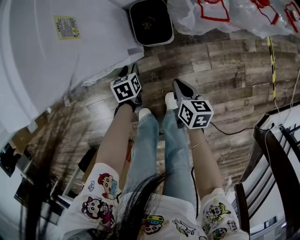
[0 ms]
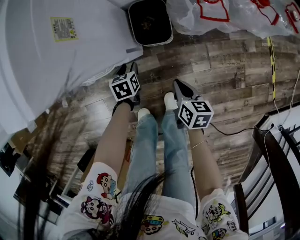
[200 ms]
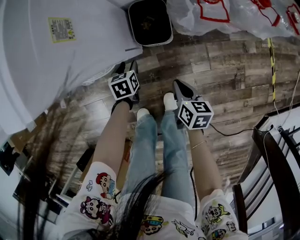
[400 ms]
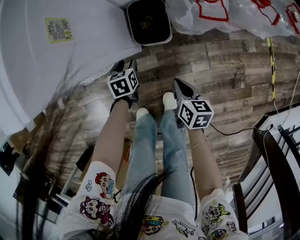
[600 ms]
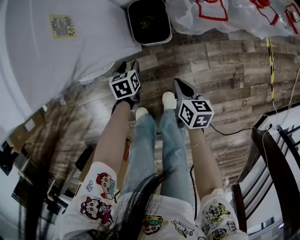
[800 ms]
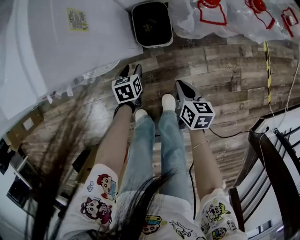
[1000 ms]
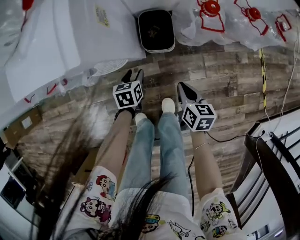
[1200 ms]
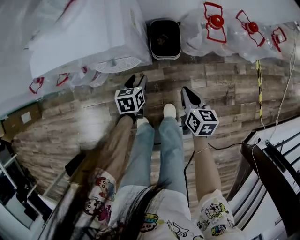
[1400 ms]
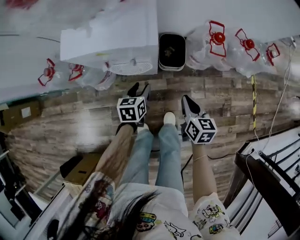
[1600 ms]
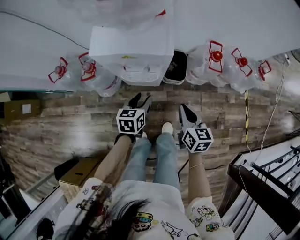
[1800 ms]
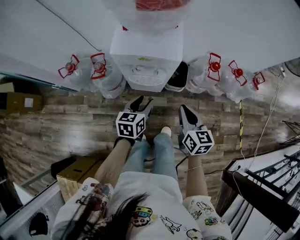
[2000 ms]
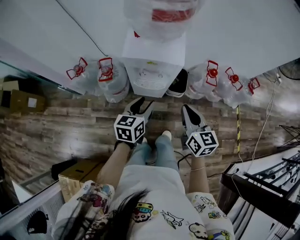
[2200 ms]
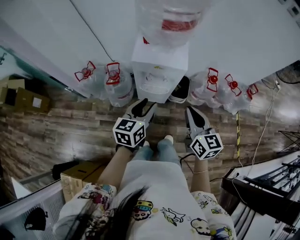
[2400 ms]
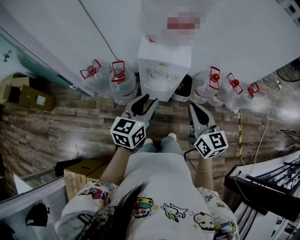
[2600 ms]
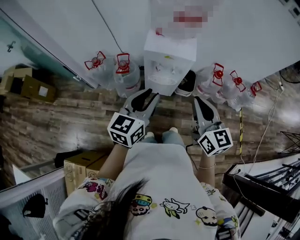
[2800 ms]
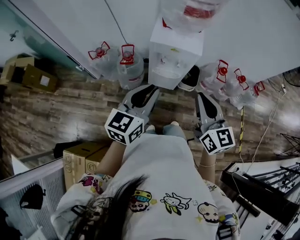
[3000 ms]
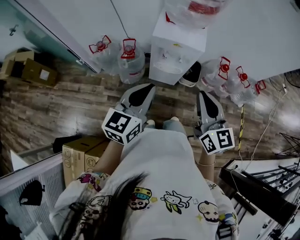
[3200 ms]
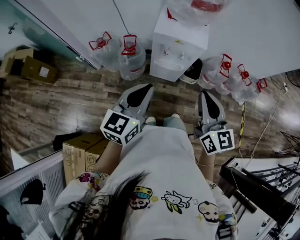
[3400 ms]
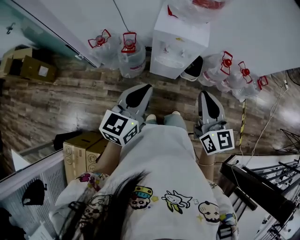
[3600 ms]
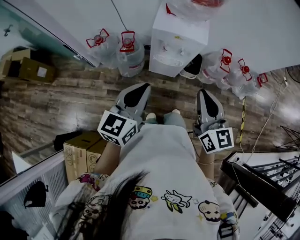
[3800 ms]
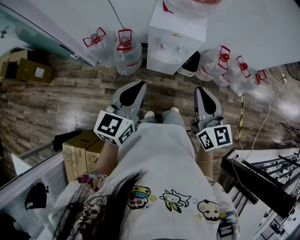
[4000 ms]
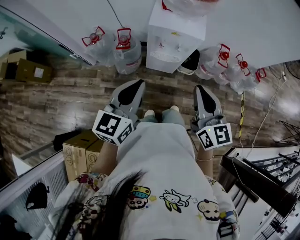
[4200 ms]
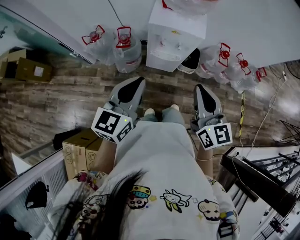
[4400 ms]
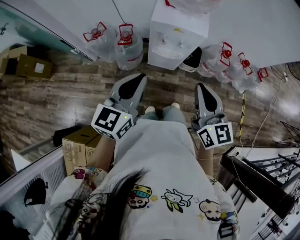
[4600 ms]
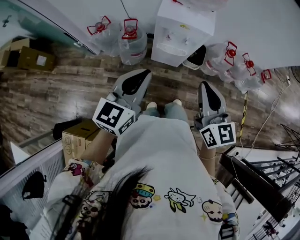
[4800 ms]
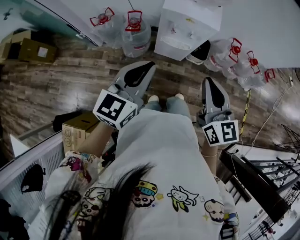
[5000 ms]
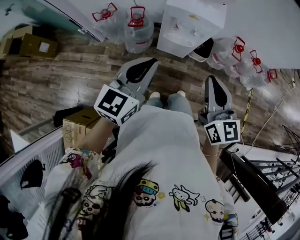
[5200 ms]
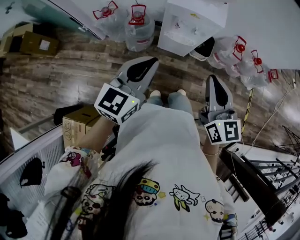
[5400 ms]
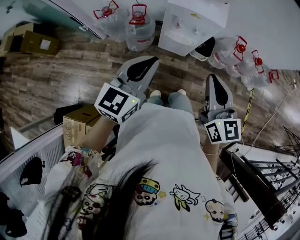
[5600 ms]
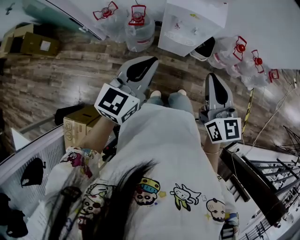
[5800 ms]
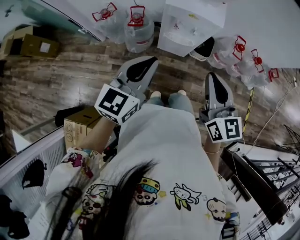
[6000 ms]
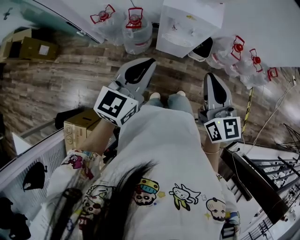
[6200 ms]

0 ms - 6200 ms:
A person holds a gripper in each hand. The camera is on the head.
0 ms - 1600 ms: Both grippers move upward, approximately 20 cm. The left gripper turns by about 20 degrees.
1600 ms - 3200 ms: The left gripper is displaced upward and backward by roughly 50 cm, angles its fingers upward, by roughly 40 degrees, and closes up; the right gripper travels upward and to the left by approximately 40 cm, and tips its fingers upward by some 30 degrees.
3200 ms - 4600 ms: The grippers make only small movements.
4600 ms - 6200 ms: Neither gripper changes place.

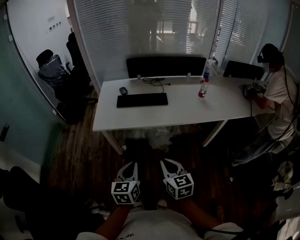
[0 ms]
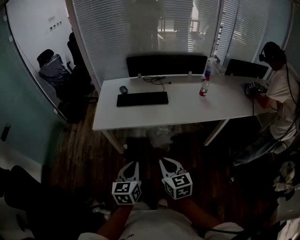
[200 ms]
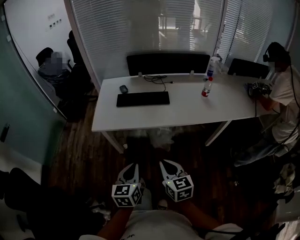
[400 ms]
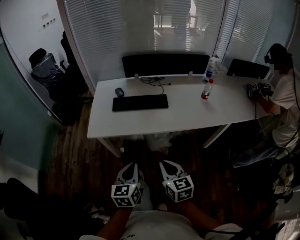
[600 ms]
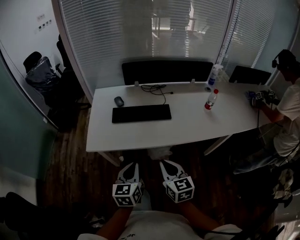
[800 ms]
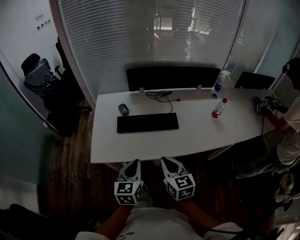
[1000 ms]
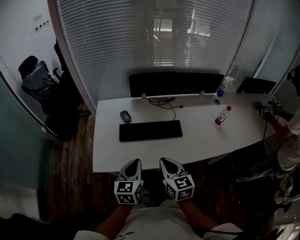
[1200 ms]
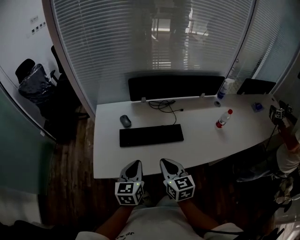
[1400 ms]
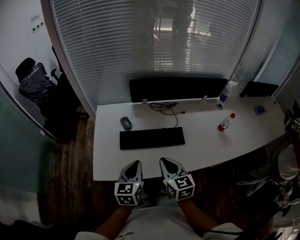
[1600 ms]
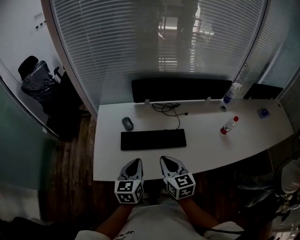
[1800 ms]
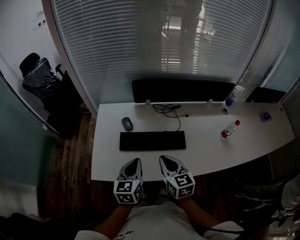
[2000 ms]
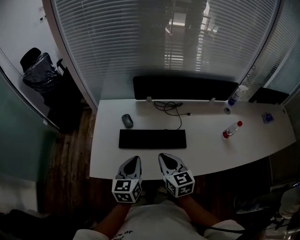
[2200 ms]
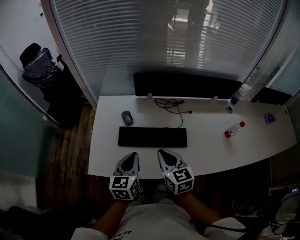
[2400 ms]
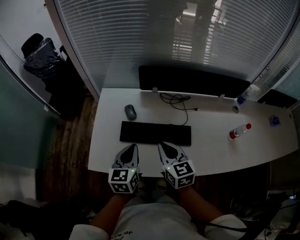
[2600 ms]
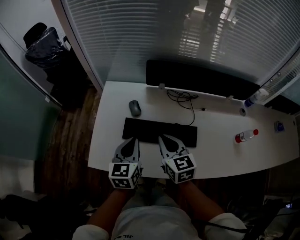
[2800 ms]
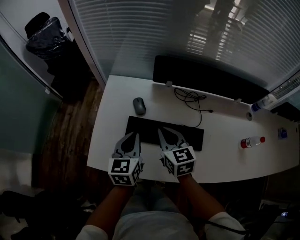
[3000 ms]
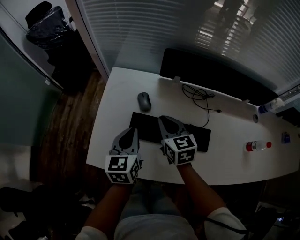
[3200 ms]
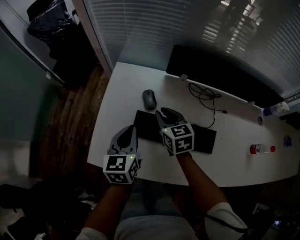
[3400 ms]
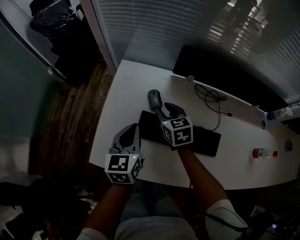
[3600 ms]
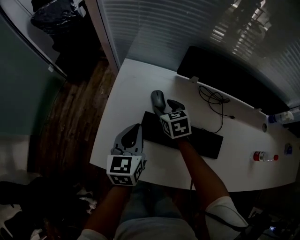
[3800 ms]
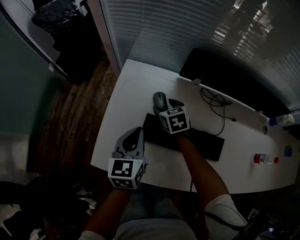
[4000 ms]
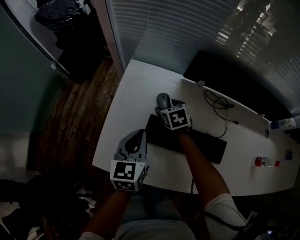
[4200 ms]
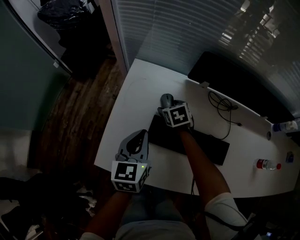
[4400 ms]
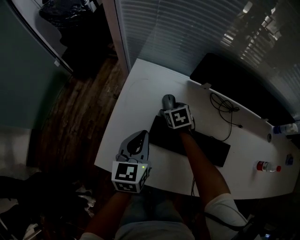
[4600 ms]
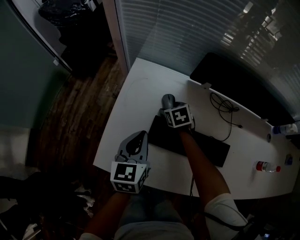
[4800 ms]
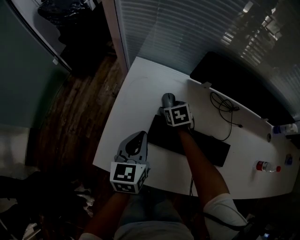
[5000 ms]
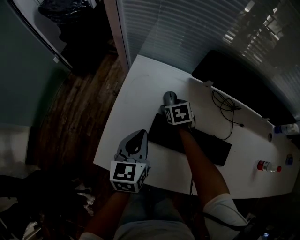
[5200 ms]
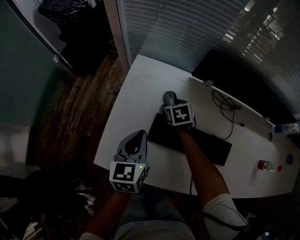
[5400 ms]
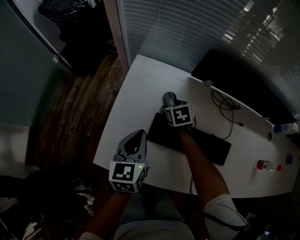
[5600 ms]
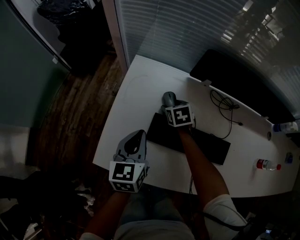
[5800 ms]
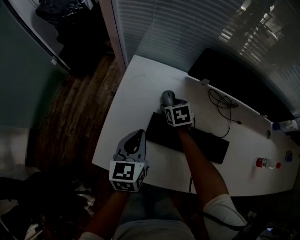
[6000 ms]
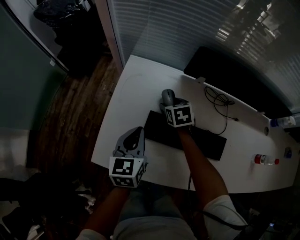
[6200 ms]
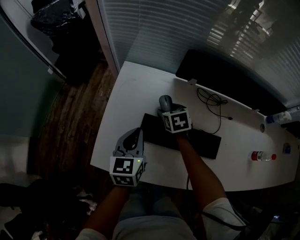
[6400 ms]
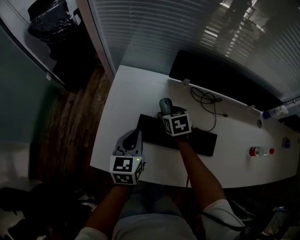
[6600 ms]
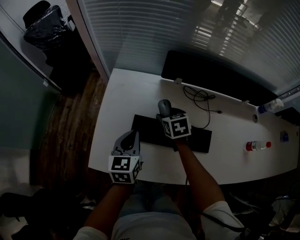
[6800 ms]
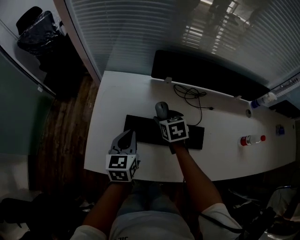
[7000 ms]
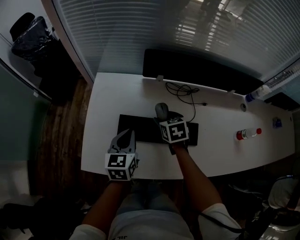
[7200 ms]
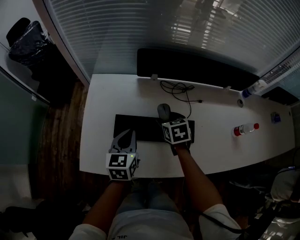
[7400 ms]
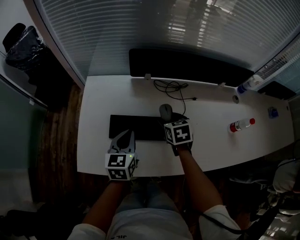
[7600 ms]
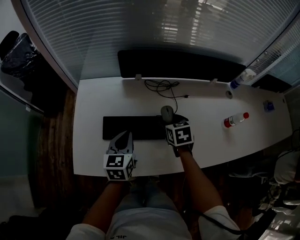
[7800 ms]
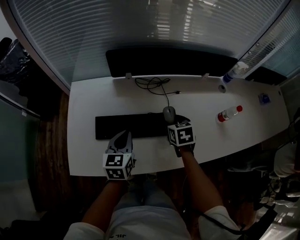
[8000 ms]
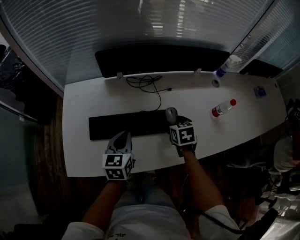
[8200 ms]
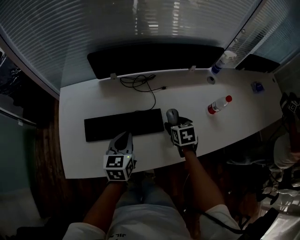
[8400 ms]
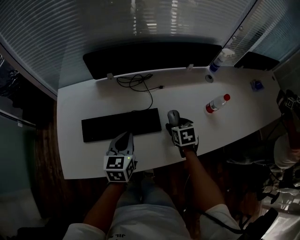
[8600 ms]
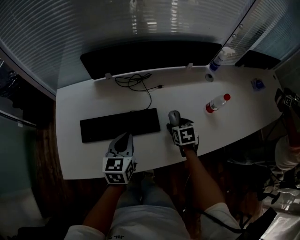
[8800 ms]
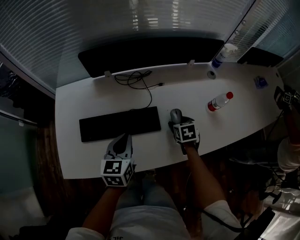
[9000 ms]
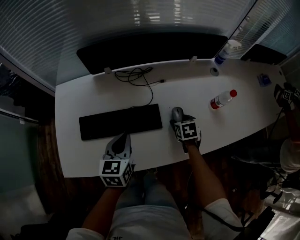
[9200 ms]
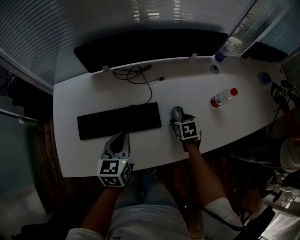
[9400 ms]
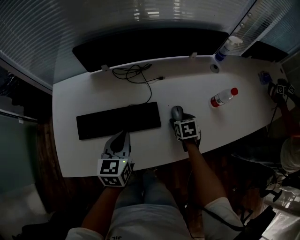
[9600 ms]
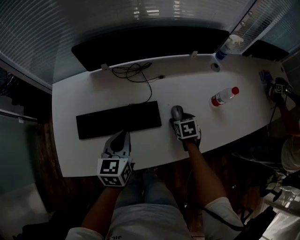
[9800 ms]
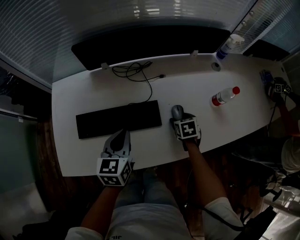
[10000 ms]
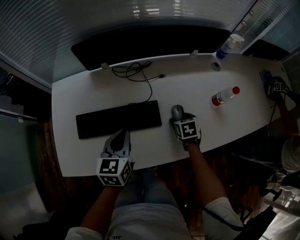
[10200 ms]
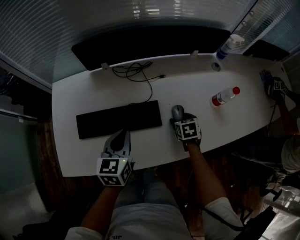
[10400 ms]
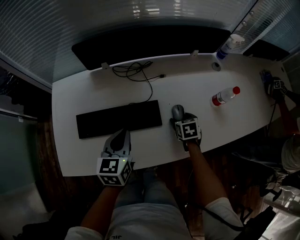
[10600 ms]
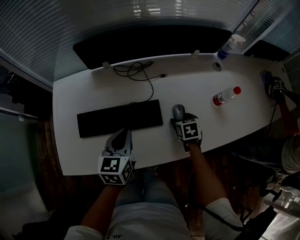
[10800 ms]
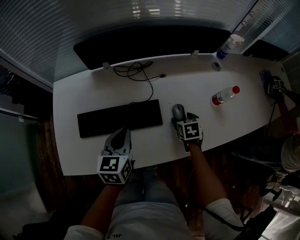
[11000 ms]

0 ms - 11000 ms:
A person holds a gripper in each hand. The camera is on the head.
0 ms - 1600 ms: Both grippers are carried forward, about 40 cm.
1600 ms - 3200 ms: The two grippers go approximately 20 cm forward.
3200 ms - 4800 ms: The left gripper travels to the left by about 5 cm. The right gripper is displaced downward and forward by approximately 20 cm, angles its fingers downward, by some 30 degrees, and opens its fingers.
4800 ms - 6200 ms: The grippers move only a little.
6200 ms - 7800 ms: The left gripper is displaced to the right by approximately 15 cm, while the right gripper heads to the right and backward, covering some 30 cm.
7800 ms - 9400 ms: The right gripper shifts roughly 25 cm to the right and downward, while the left gripper is displaced to the right by about 15 cm.
9400 ms - 11000 ms: The grippers move only a little.

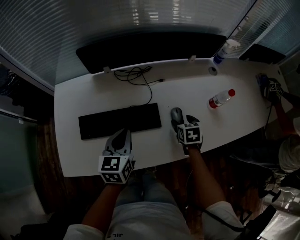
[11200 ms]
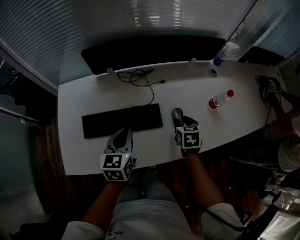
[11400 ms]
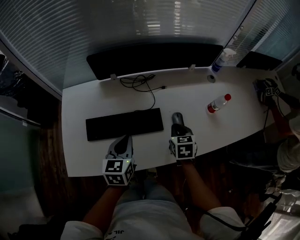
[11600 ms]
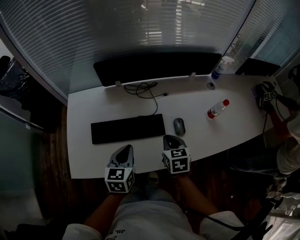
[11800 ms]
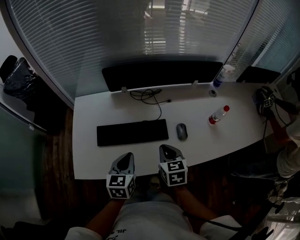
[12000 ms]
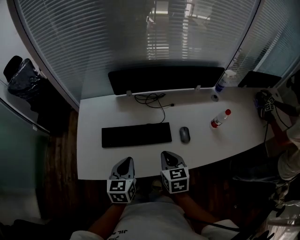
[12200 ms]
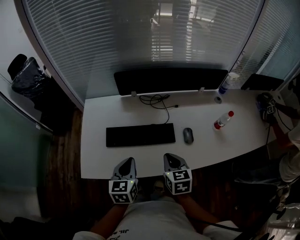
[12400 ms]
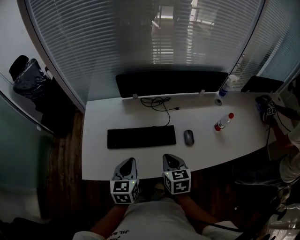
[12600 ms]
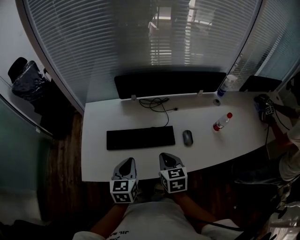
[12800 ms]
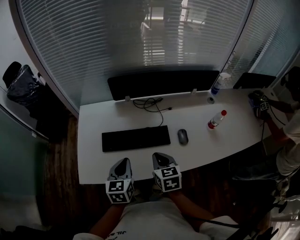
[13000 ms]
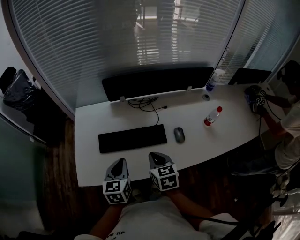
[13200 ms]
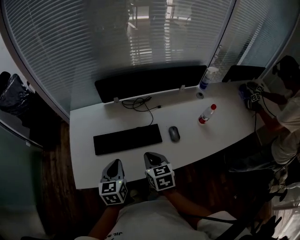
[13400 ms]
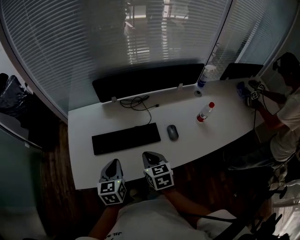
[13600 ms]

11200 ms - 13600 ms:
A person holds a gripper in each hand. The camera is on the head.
11200 ms - 12400 ms: The right gripper heads upward, to the left and backward, covering some 30 cm, swivels roughly 20 degrees, and closes its fingers. Meanwhile the left gripper heads backward, to the left and upward, covering some 15 cm.
12400 ms - 13600 ms: The grippers move only a little.

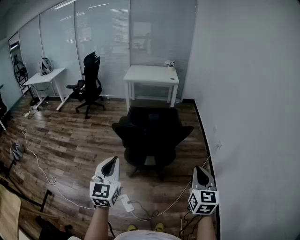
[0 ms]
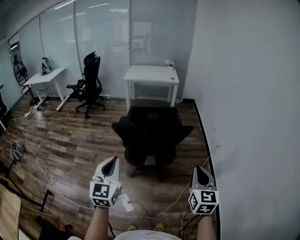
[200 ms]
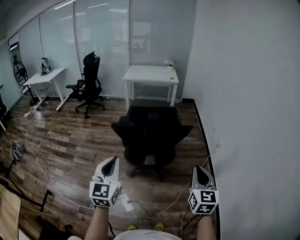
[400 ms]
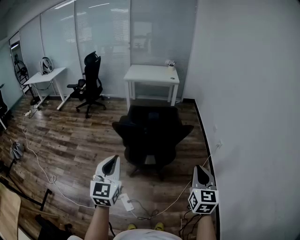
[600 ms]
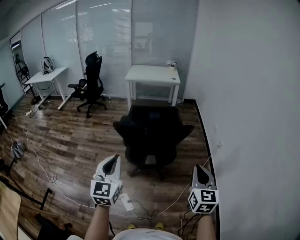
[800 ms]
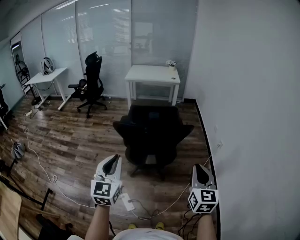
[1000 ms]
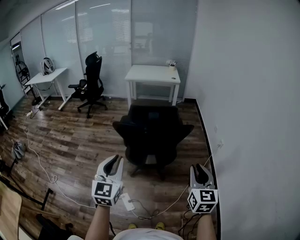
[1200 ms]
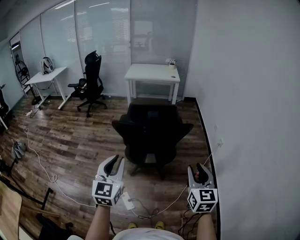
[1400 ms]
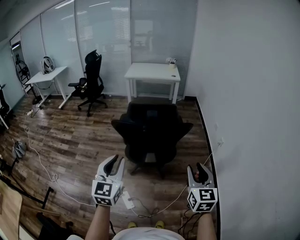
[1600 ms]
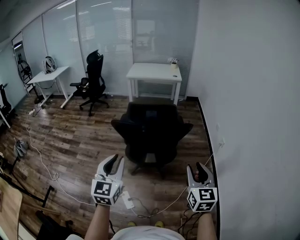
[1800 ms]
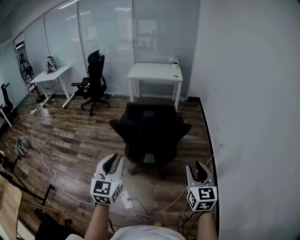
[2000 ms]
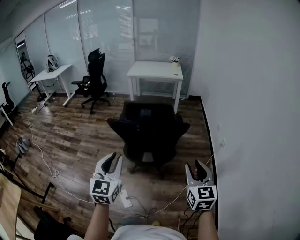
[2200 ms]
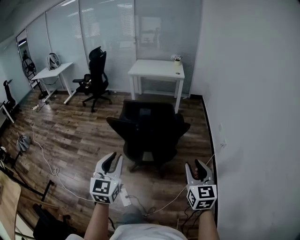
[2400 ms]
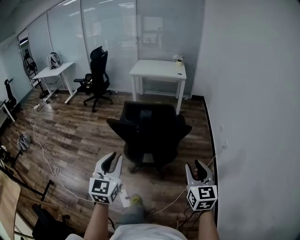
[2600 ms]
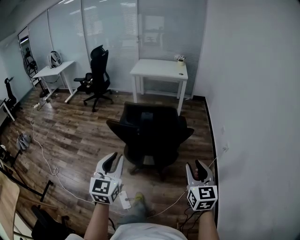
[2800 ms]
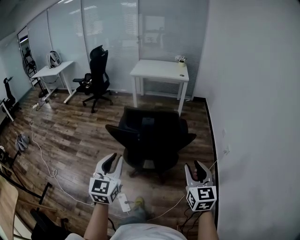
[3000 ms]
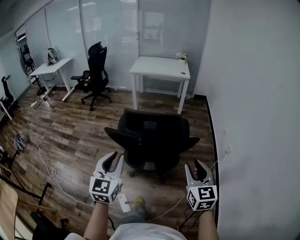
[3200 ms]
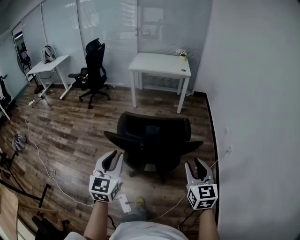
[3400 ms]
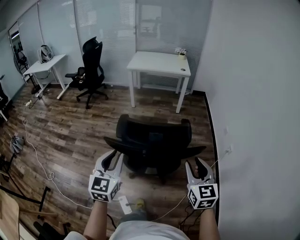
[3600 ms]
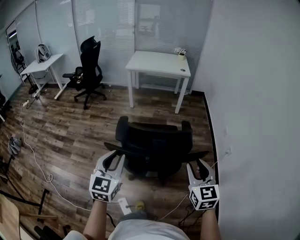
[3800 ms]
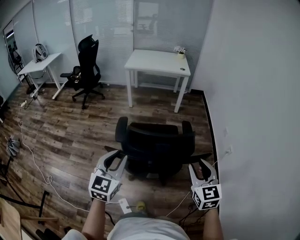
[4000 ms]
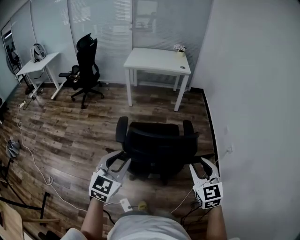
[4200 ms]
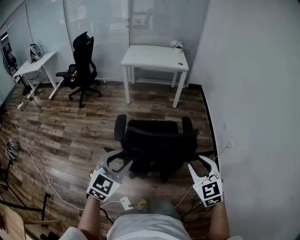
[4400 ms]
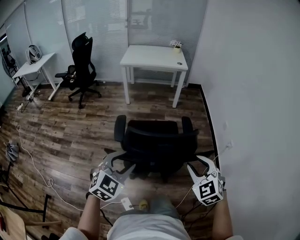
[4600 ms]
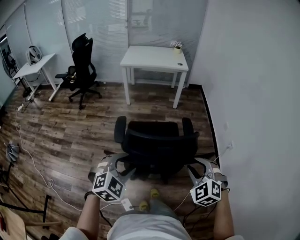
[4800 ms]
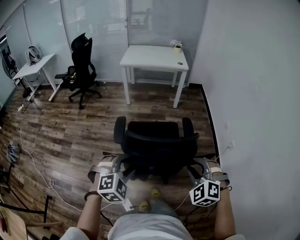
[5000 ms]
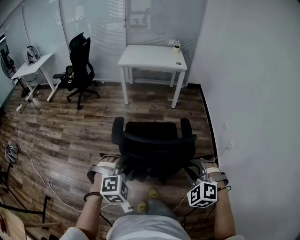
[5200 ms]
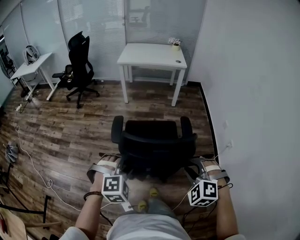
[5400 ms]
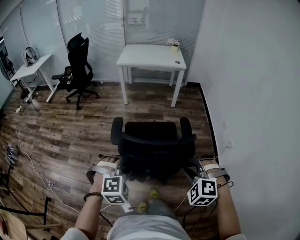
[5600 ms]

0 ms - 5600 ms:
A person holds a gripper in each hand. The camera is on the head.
0 ms - 1400 ms: The right gripper opens its fingers.
1400 ms - 2800 ms: The right gripper moves forward, about 10 cm; the left gripper heads forward and to the right, covering some 10 cm.
2800 ms - 4200 ms: The left gripper travels forward by some 25 cm, and turns by about 20 degrees; the right gripper moves forward and to the left, approximately 25 cm.
4200 ms - 5600 ms: The grippers both shift downward by roughly 10 cm. The right gripper twists roughly 50 degrees counterclockwise, seen from behind; the left gripper rolls clockwise, seen from behind, by some 50 degrees.
